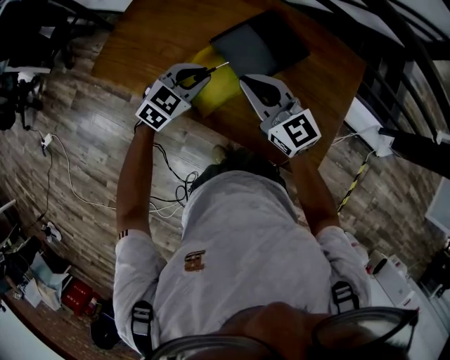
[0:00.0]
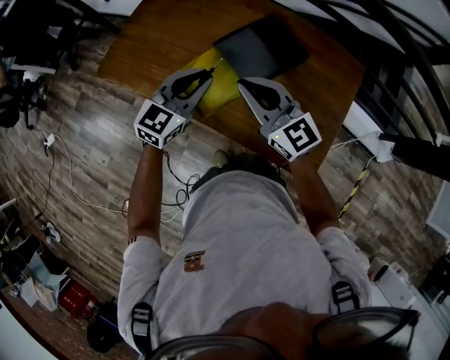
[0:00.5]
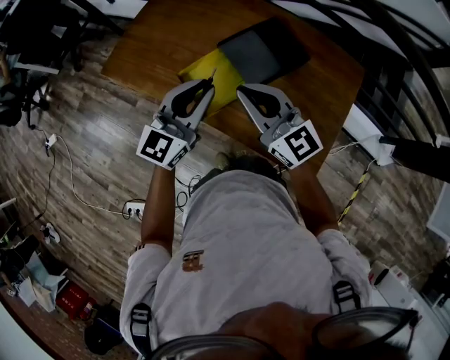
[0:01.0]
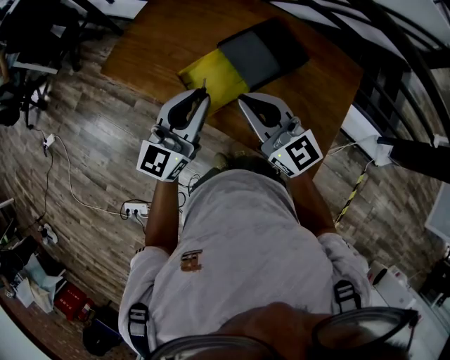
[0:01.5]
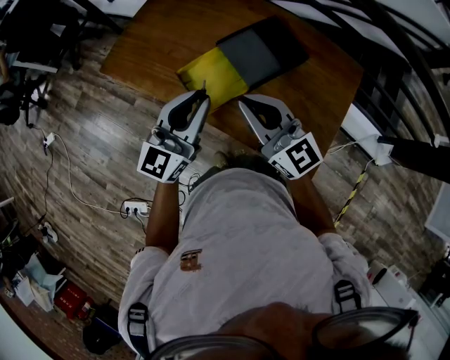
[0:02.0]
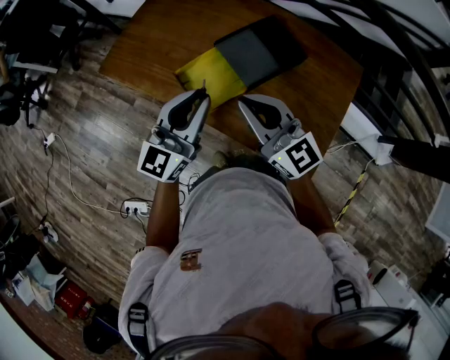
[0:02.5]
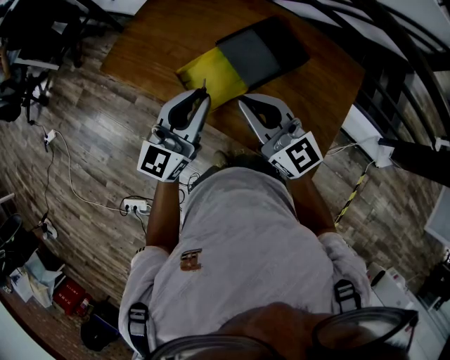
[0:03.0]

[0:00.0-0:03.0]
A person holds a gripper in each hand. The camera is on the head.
0:00.0 to 0:01.5: The left gripper shifts roughly 20 cm upward and backward, and points its fingers roughly 40 degrees further upward. Meanwhile the right gripper is displaced backward and upward by approximately 10 cm.
0:01.5 to 0:03.0: Both grippers stay put.

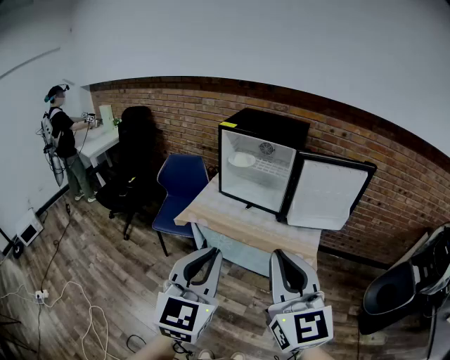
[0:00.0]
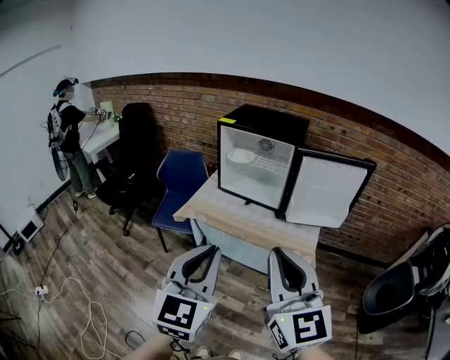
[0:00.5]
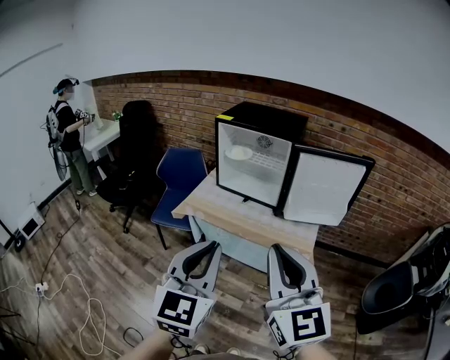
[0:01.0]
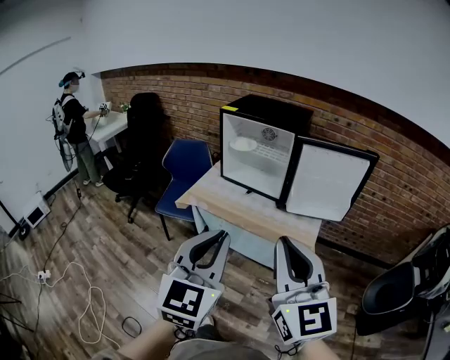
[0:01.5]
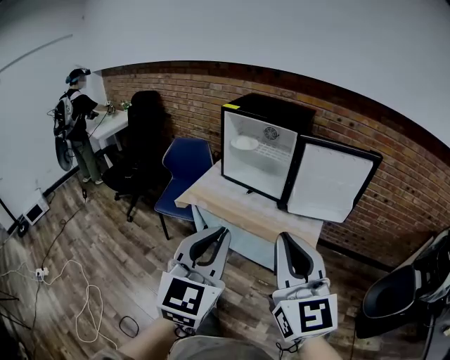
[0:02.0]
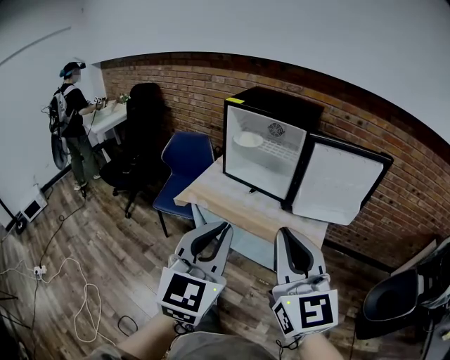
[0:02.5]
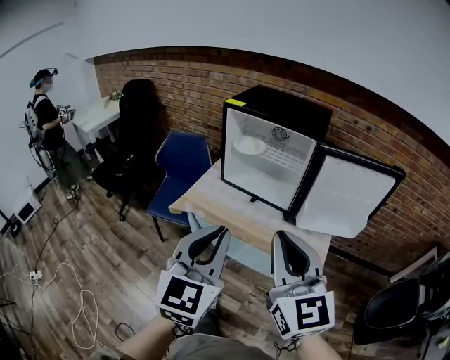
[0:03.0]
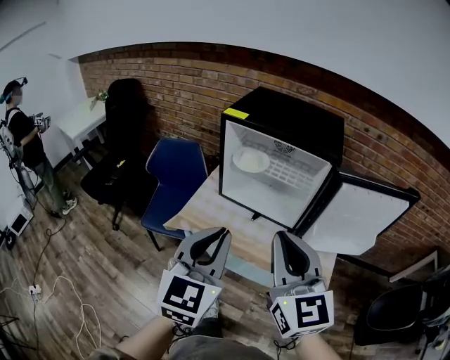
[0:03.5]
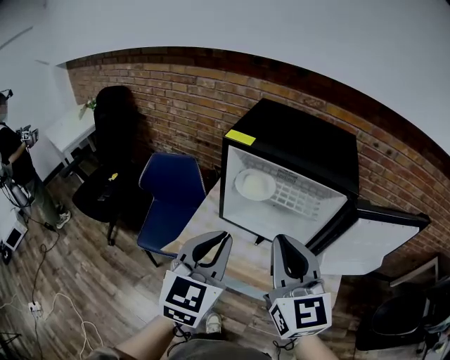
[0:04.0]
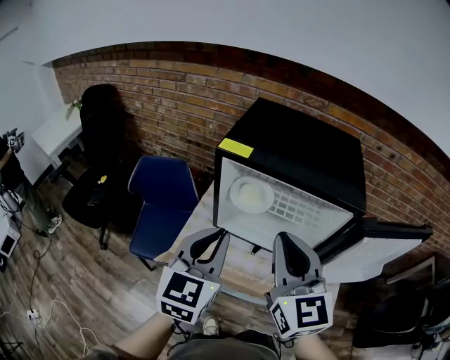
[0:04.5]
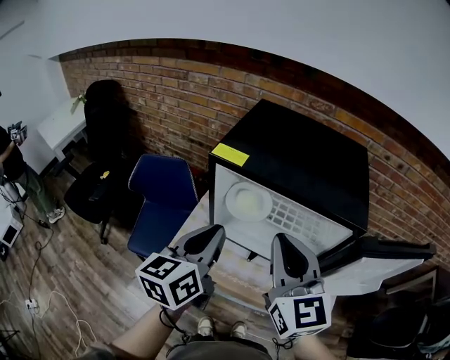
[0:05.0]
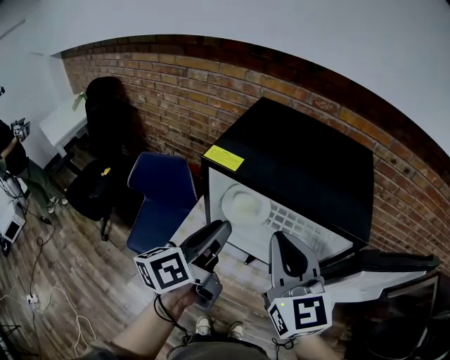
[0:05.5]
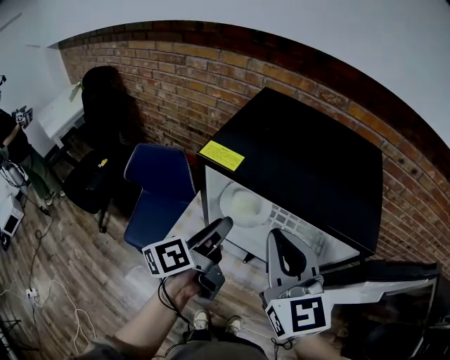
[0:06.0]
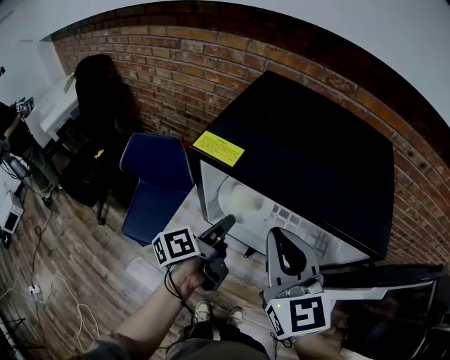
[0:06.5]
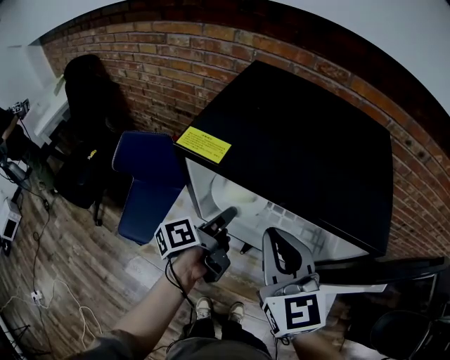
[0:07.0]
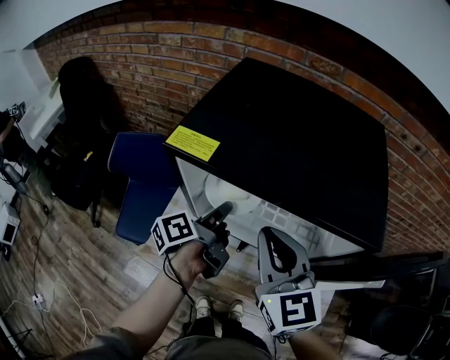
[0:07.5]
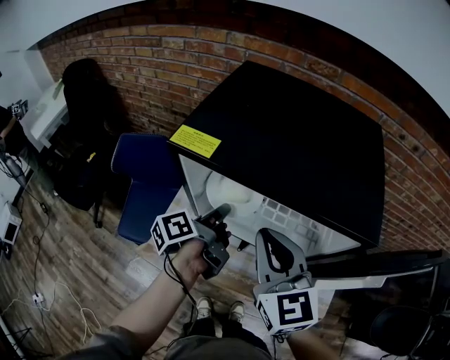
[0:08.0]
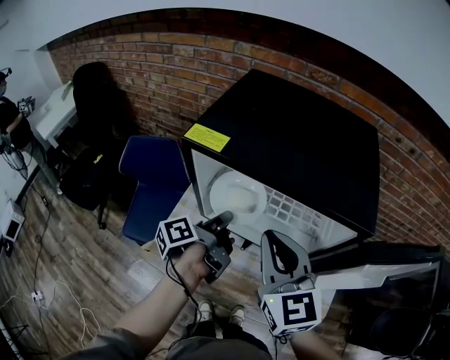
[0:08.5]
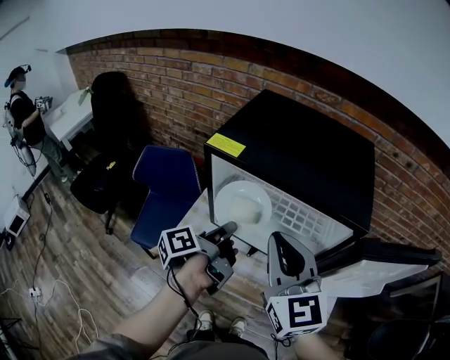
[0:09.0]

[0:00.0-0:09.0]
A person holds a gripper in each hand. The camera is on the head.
0:00.0 to 0:02.0: The right gripper ends up about 5 cm from where it was. The left gripper is displaced to the right by approximately 5 cm.
0:02.0 to 0:04.5: The pair of grippers is taken forward, approximately 50 cm.
0:04.5 to 0:07.0: The left gripper travels downward and forward by approximately 25 cm, rotates around the line of its fingers by about 80 degrees, counterclockwise from behind, and opens up, while the right gripper moves forward and downward, some 15 cm.
0:07.0 to 0:09.0: The right gripper shifts approximately 5 cm backward, while the left gripper travels backward and upward by about 10 cm, and closes its fingers.

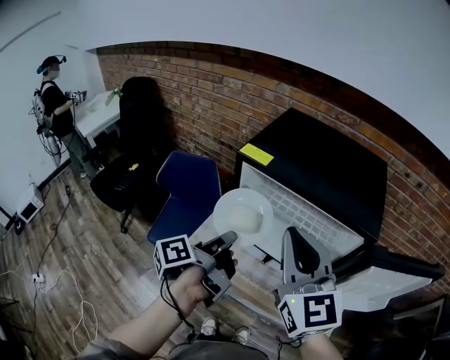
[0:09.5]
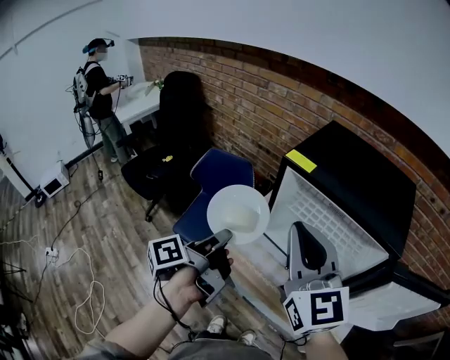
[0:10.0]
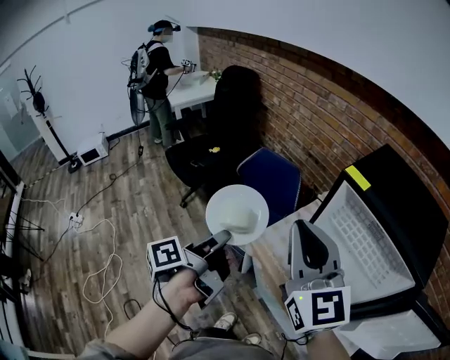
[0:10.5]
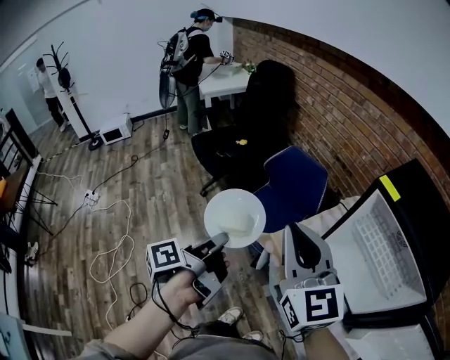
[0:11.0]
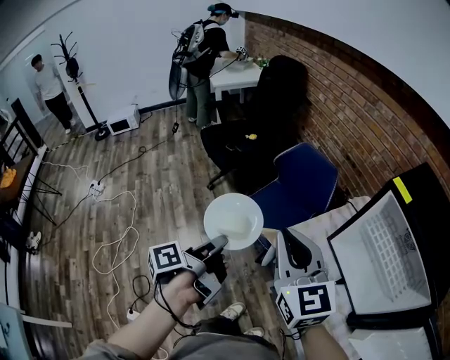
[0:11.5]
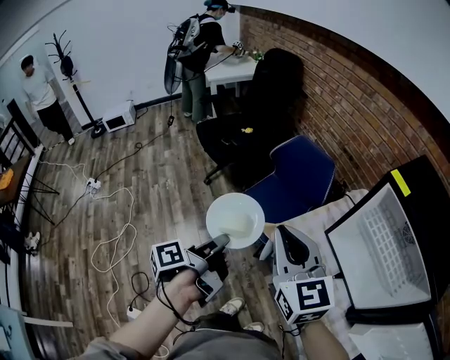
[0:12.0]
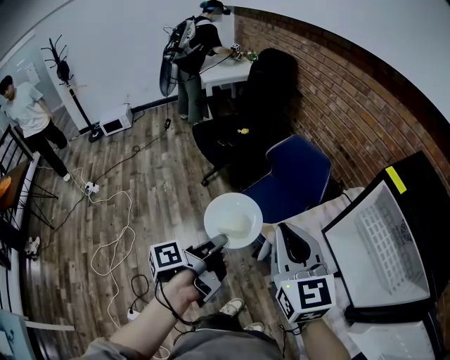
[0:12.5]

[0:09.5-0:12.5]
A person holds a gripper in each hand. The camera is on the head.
0:09.5 to 0:11.0: The left gripper shifts by some 30 cm, and rotates some 30 degrees; the right gripper ends up some 25 cm from where it was, and swivels roughly 30 degrees.
0:11.0 to 0:12.5: The right gripper goes some 5 cm downward, while the left gripper moves approximately 5 cm.

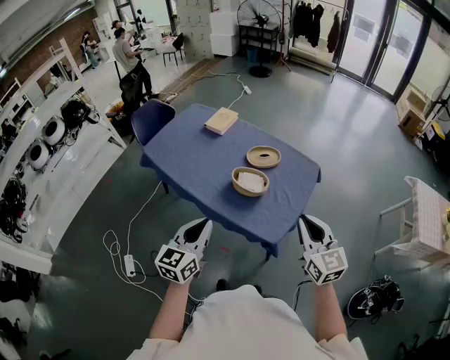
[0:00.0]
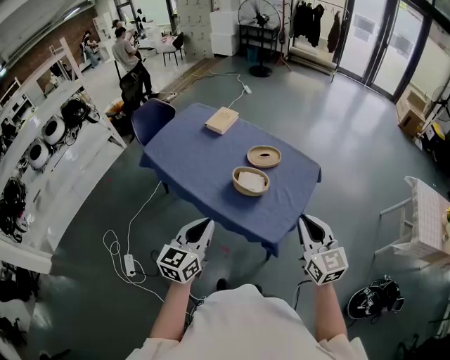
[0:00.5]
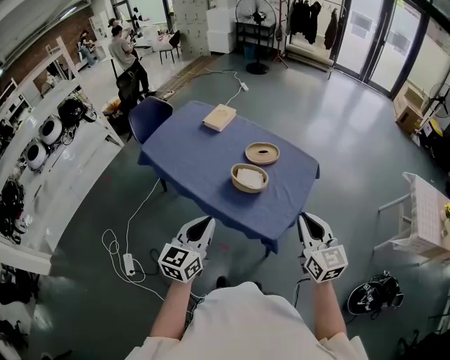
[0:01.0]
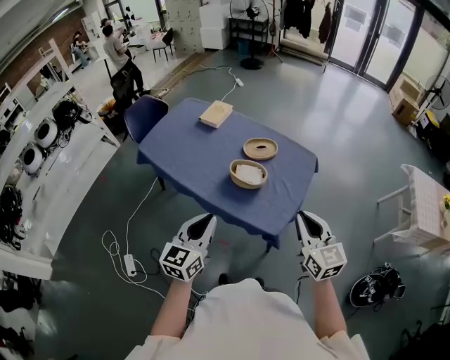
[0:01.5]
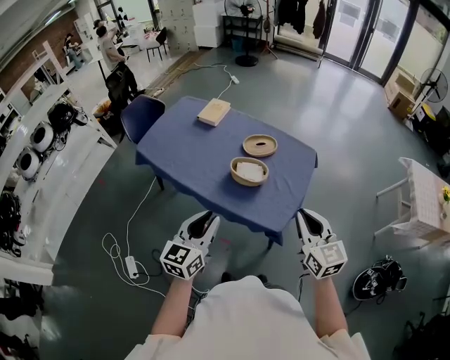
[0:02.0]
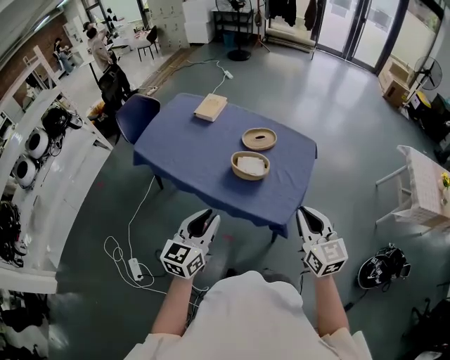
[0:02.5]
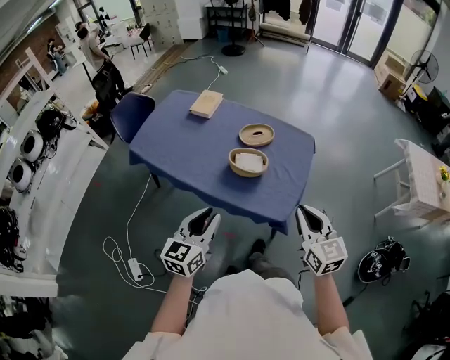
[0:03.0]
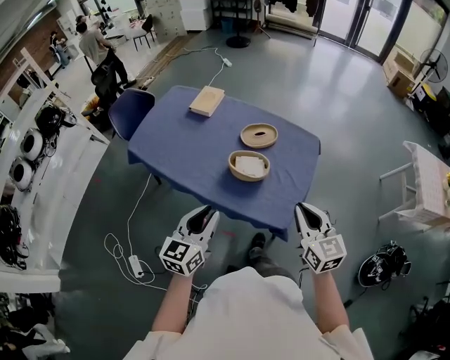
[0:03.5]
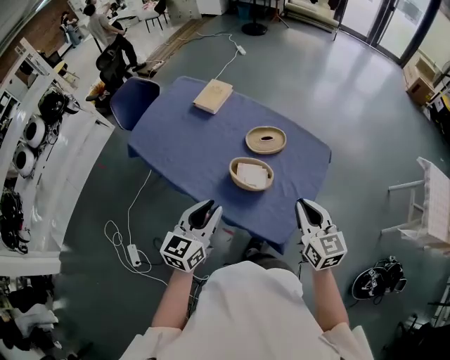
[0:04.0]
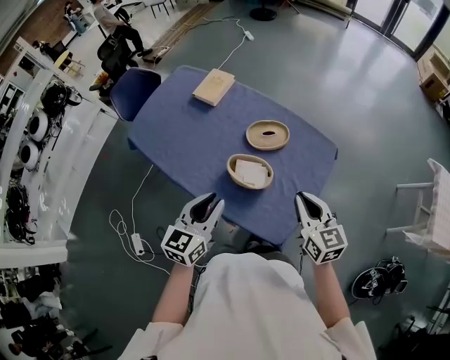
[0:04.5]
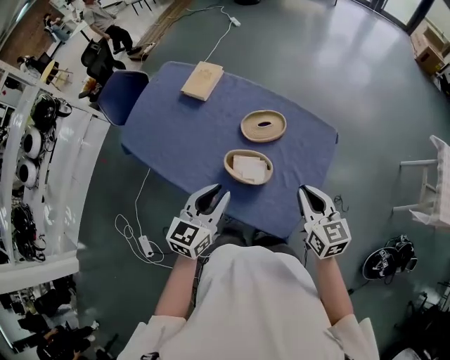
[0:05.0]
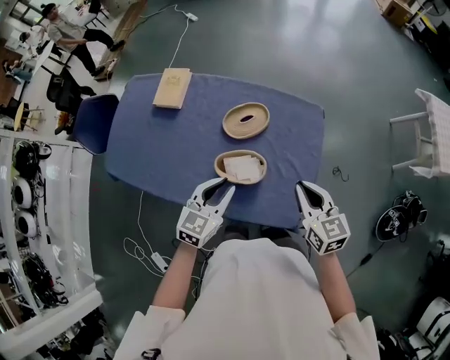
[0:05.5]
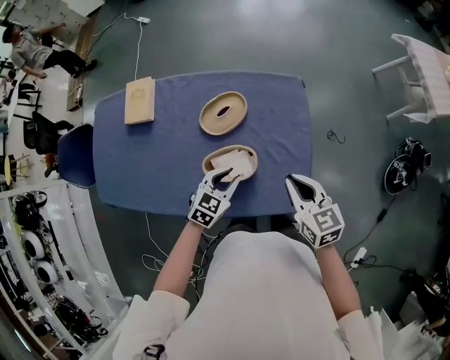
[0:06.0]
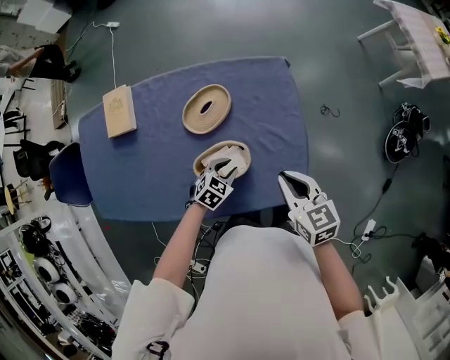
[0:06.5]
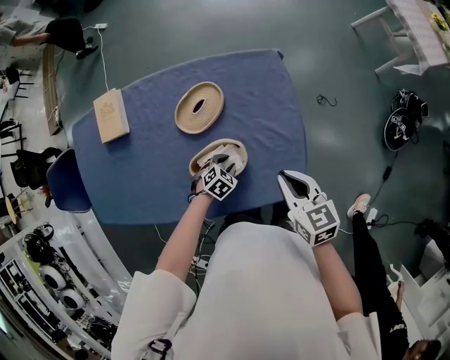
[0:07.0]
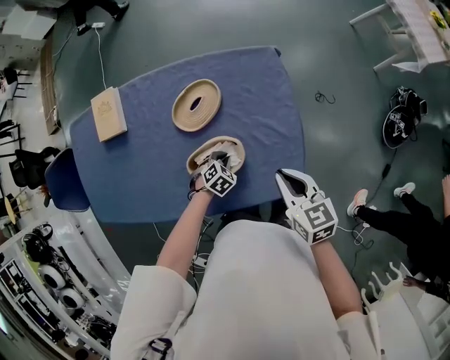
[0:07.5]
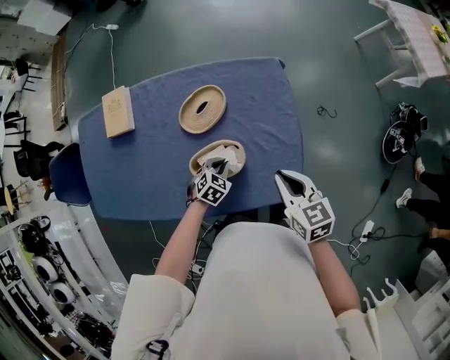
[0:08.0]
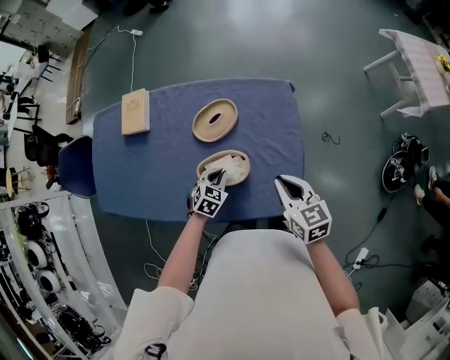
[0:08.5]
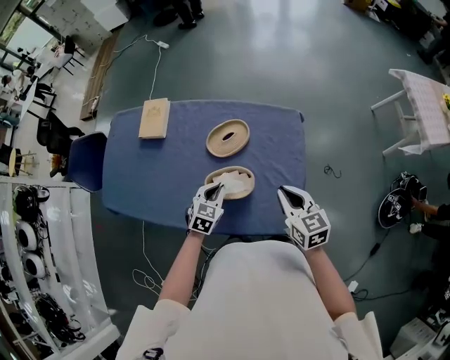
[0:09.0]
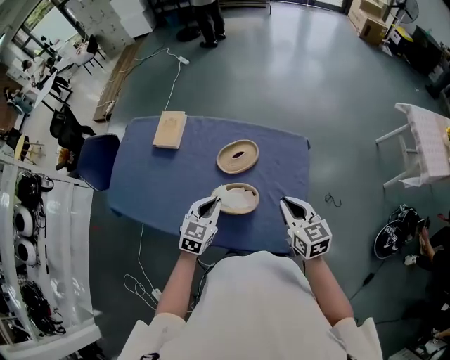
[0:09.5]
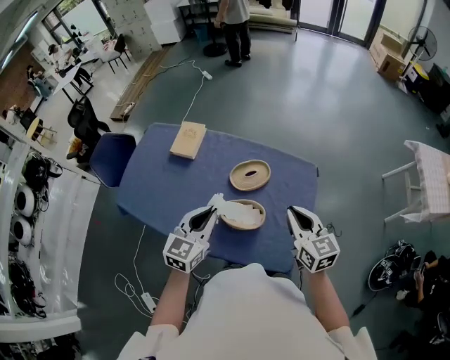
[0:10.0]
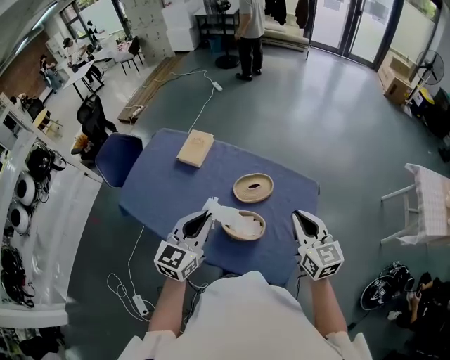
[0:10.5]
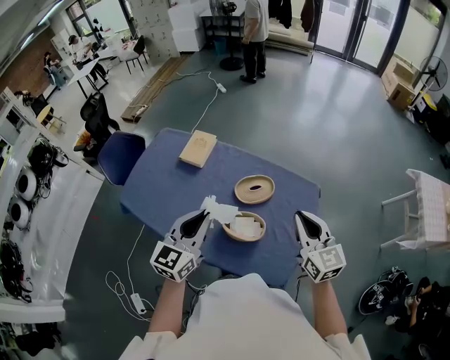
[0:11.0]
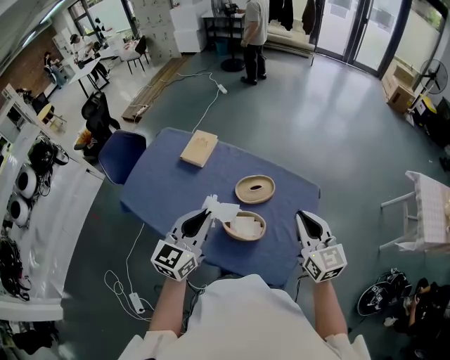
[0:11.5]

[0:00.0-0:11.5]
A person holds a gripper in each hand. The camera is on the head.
0:00.0 to 0:02.0: The grippers move only a little.
0:02.0 to 0:04.0: Both grippers move forward, about 20 cm.
0:04.0 to 0:06.0: The left gripper moves downward, about 25 cm, and changes its angle by approximately 50 degrees. Meanwhile the right gripper heads downward, covering about 15 cm, and changes its angle by some 30 degrees.
0:06.0 to 0:07.5: The right gripper shifts about 5 cm downward. The left gripper goes approximately 20 cm downward, and angles its fingers downward, by about 30 degrees.
0:07.5 to 0:09.5: The right gripper moves upward, about 10 cm, and changes its angle by roughly 20 degrees. Meanwhile the left gripper travels upward by approximately 30 cm, and points its fingers approximately 40 degrees further upward.
0:09.5 to 0:11.5: The grippers both shift upward by approximately 20 cm. The right gripper swivels some 20 degrees. Meanwhile the left gripper changes its angle by roughly 30 degrees.
